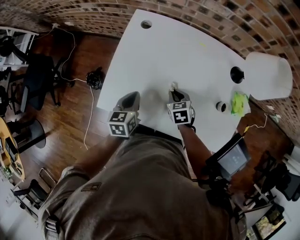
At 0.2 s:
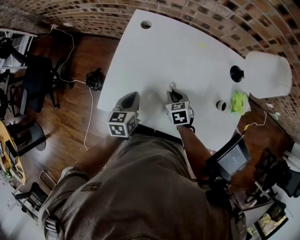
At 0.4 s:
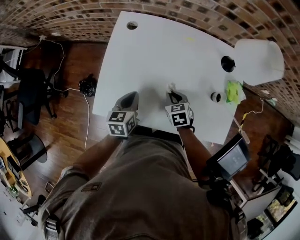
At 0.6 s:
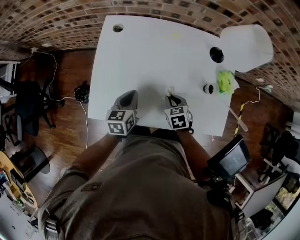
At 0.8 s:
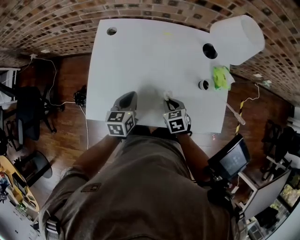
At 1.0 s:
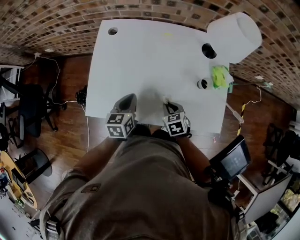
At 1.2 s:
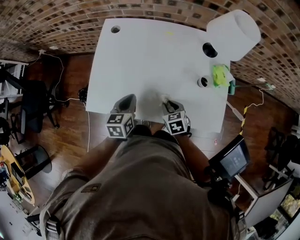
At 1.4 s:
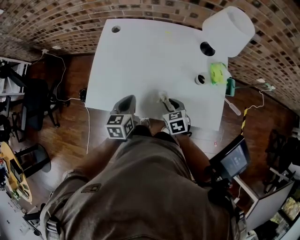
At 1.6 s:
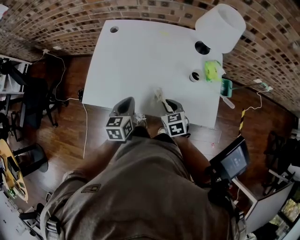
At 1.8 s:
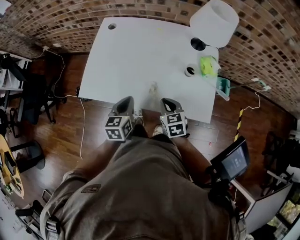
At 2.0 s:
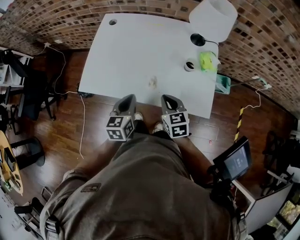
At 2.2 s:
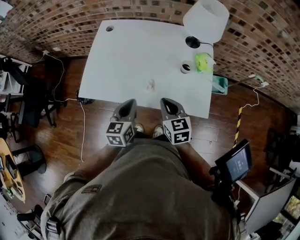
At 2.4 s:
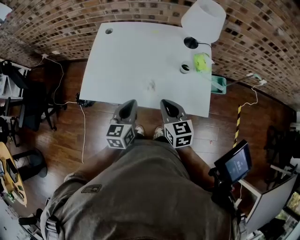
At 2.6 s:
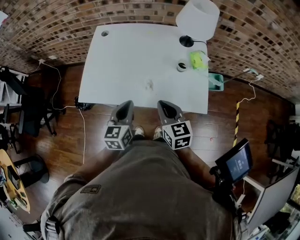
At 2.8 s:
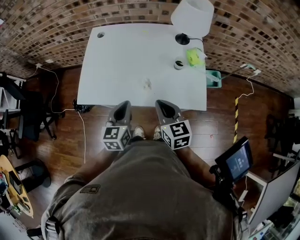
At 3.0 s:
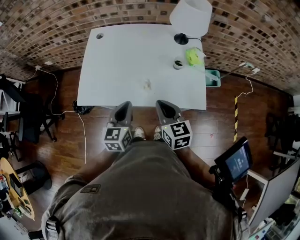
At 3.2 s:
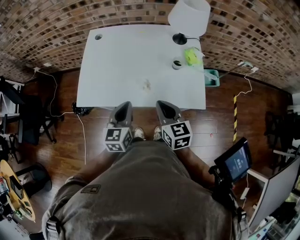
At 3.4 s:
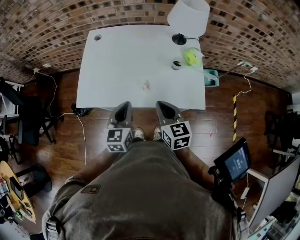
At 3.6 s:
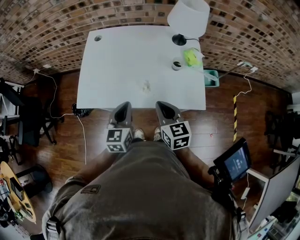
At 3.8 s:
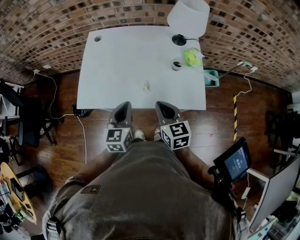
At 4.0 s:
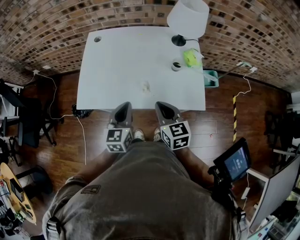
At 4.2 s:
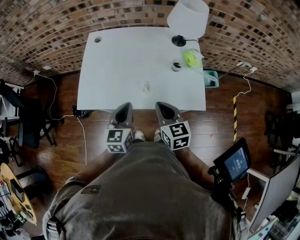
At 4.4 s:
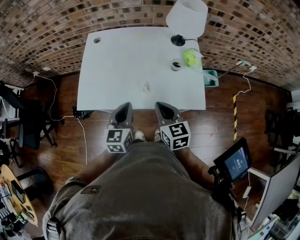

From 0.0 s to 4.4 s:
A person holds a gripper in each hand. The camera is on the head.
From 0.0 s to 1.4 s: The left gripper goes roughly 10 cm to the right and backward. Meanwhile the right gripper heads backward and to the right, covering some 15 cm, and opens.
From 1.4 s to 3.0 s: The left gripper shifts some 15 cm backward and upward. The right gripper moves upward and backward, about 20 cm, turns by about 30 degrees, and closes its fingers.
From 3.0 s to 4.4 s: The grippers stay close to where they were, moving slightly.

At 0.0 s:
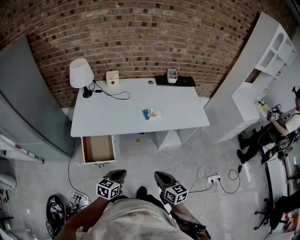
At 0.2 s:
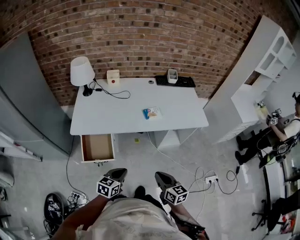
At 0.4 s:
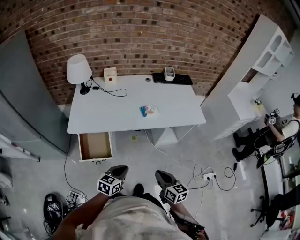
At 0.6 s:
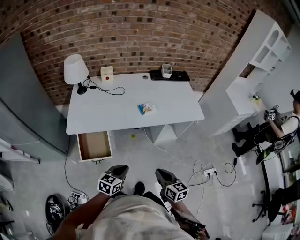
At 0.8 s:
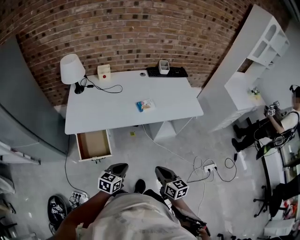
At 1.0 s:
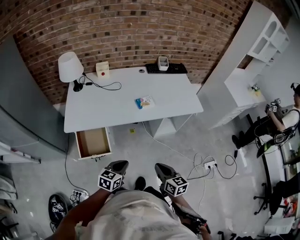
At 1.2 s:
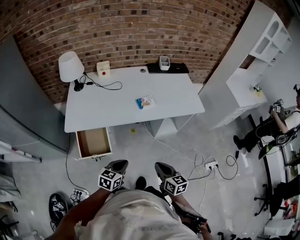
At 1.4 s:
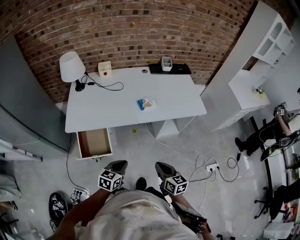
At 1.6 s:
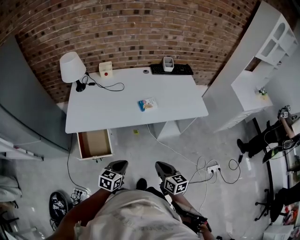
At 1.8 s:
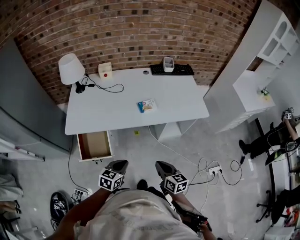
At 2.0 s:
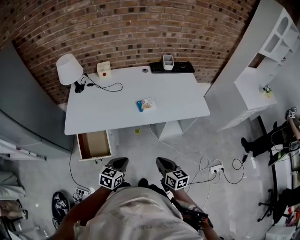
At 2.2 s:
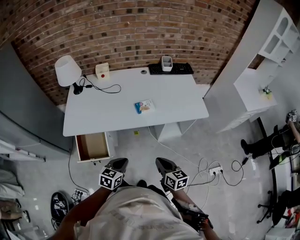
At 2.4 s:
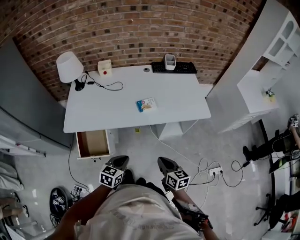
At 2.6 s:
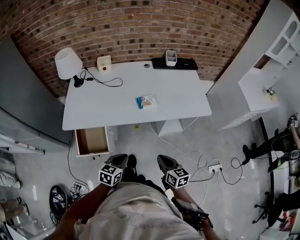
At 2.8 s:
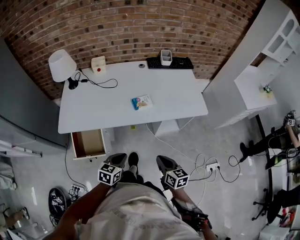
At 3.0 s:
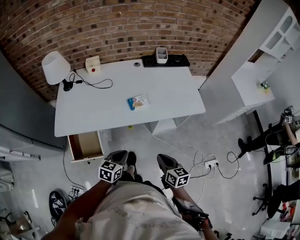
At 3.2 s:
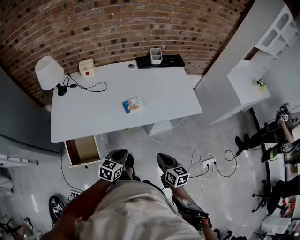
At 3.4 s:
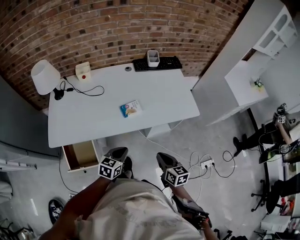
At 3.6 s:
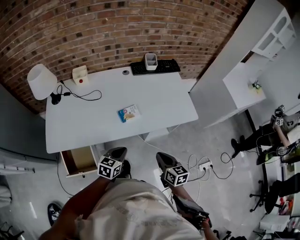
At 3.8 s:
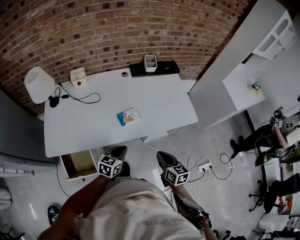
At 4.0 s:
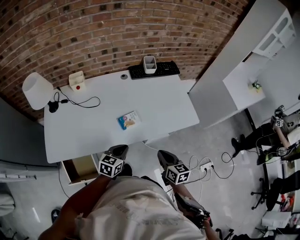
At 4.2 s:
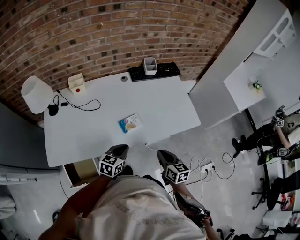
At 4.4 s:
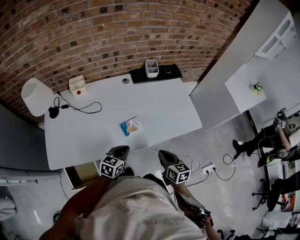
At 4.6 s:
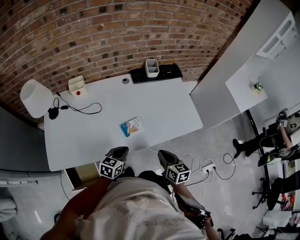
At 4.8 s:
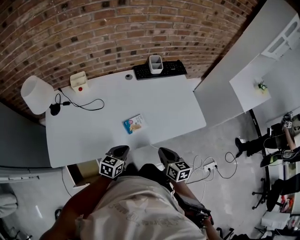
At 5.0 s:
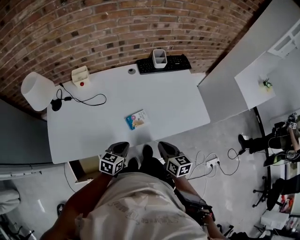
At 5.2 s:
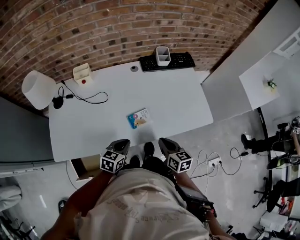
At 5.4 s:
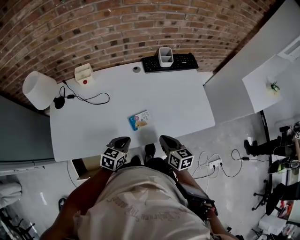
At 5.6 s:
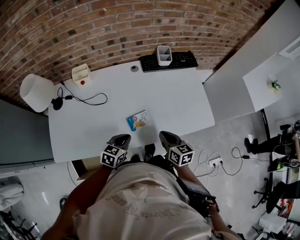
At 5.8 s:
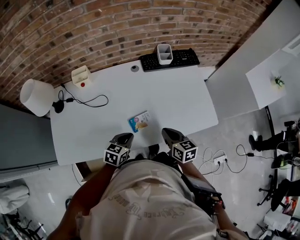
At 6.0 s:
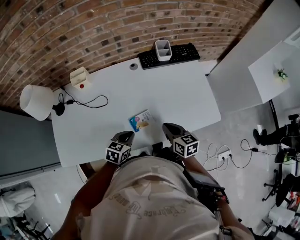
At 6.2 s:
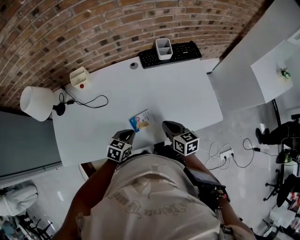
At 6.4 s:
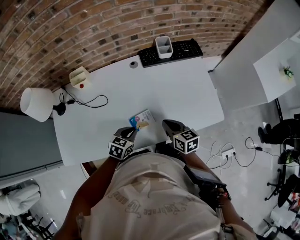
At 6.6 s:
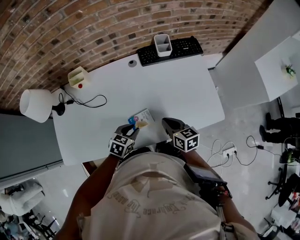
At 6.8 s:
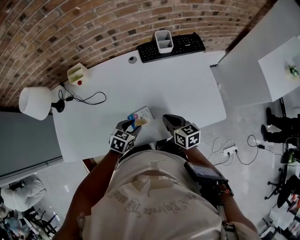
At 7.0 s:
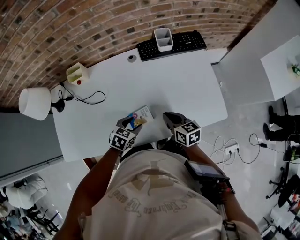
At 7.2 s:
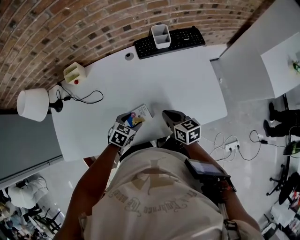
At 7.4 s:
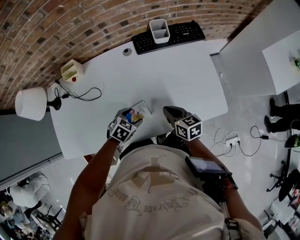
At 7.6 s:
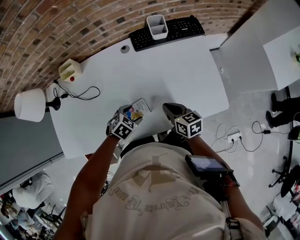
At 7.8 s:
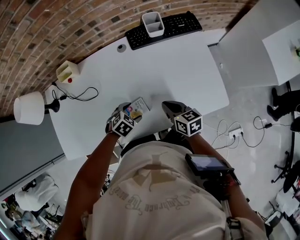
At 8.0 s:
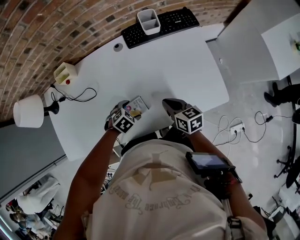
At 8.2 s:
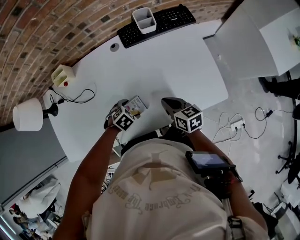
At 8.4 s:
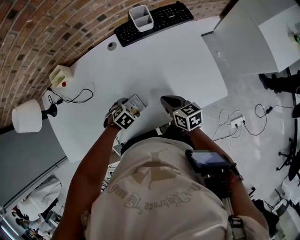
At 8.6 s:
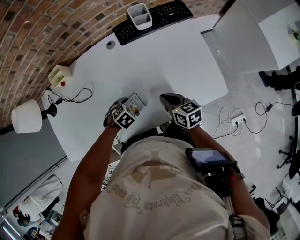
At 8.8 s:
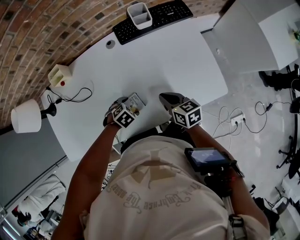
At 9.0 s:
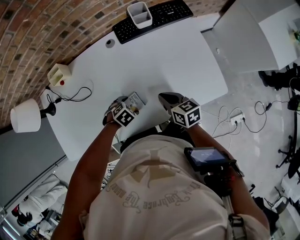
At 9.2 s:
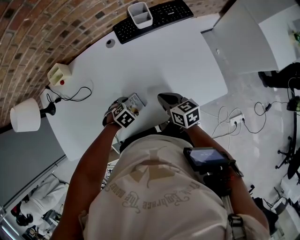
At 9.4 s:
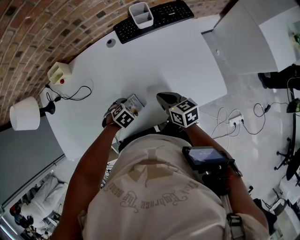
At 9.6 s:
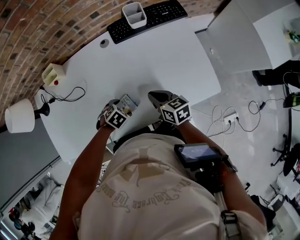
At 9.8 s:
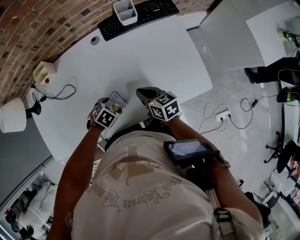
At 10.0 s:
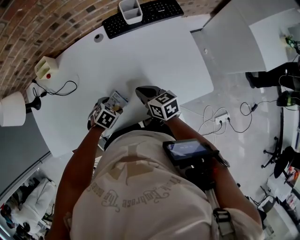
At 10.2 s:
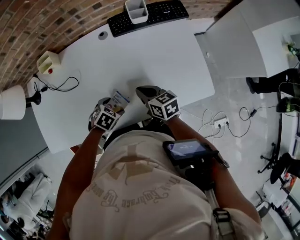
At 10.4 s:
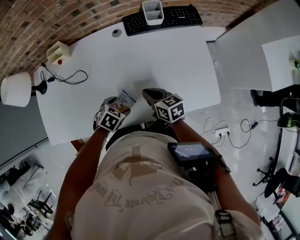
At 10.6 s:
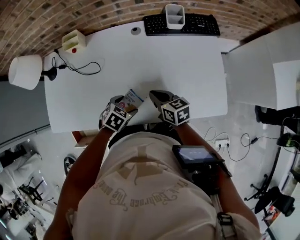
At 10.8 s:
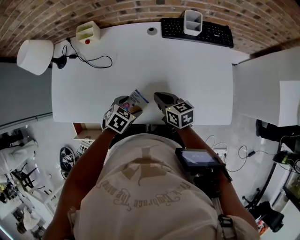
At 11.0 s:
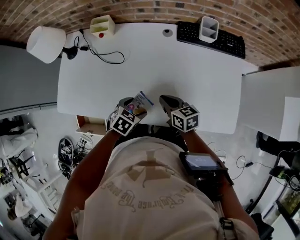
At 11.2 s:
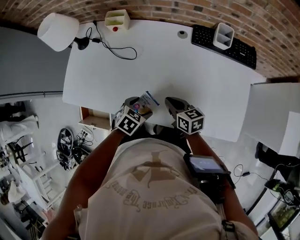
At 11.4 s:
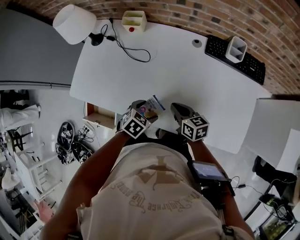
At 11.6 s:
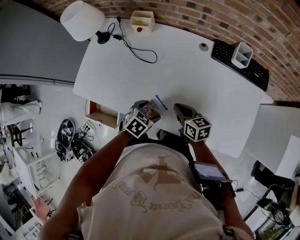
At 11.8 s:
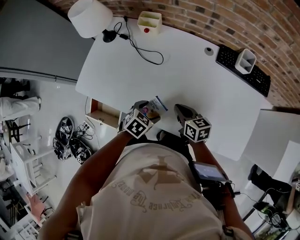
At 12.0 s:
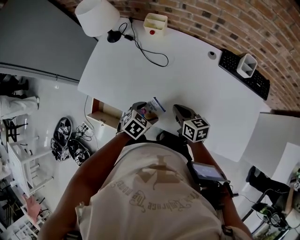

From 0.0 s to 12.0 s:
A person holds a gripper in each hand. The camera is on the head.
From 0.0 s to 1.6 s: There are only small adjustments of the grippers.
From 1.6 s to 3.0 s: The two grippers go some 10 cm forward and to the right.
From 3.0 s to 4.4 s: The grippers both shift forward by about 20 cm.
From 4.4 s to 6.0 s: The right gripper shifts some 15 cm forward; the left gripper is displaced forward by about 10 cm.
From 6.0 s to 7.6 s: The left gripper is displaced downward, forward and to the right by about 10 cm, changes its angle by roughly 30 degrees, and opens. Meanwhile the right gripper shifts some 10 cm forward and downward.
From 7.6 s to 9.0 s: The grippers make only small movements.
From 9.0 s to 10.4 s: The left gripper changes place by about 5 cm, and changes its angle by roughly 20 degrees.
From 10.4 s to 12.0 s: The left gripper changes place by approximately 15 cm, and rotates roughly 30 degrees. The right gripper shifts by approximately 20 cm, and swivels roughly 20 degrees.

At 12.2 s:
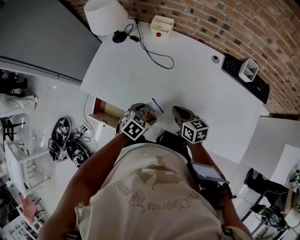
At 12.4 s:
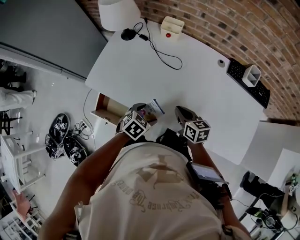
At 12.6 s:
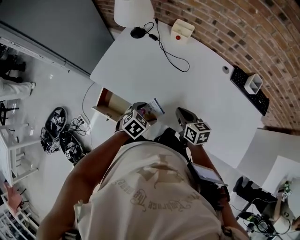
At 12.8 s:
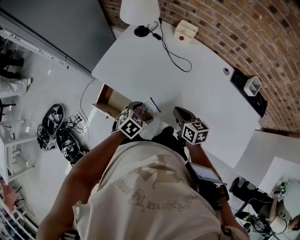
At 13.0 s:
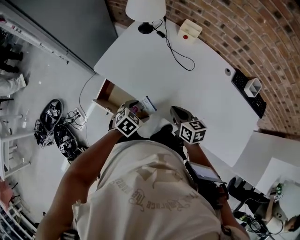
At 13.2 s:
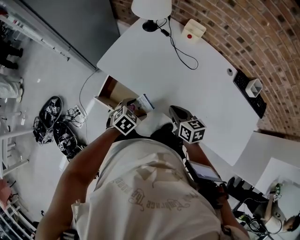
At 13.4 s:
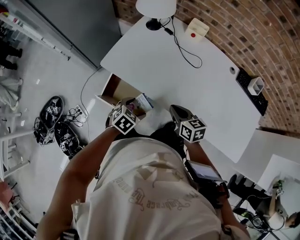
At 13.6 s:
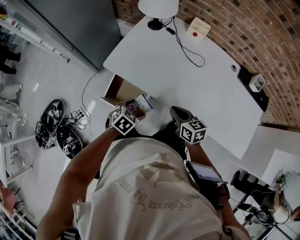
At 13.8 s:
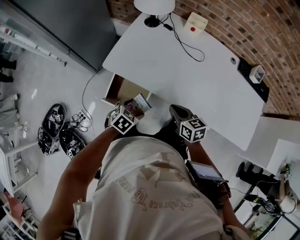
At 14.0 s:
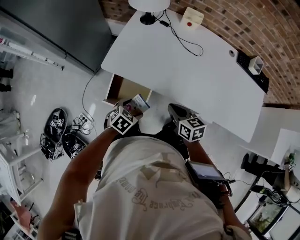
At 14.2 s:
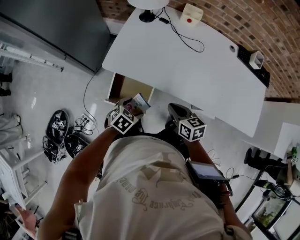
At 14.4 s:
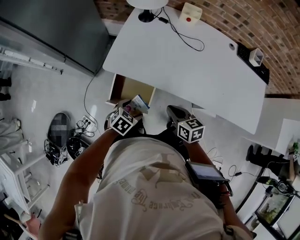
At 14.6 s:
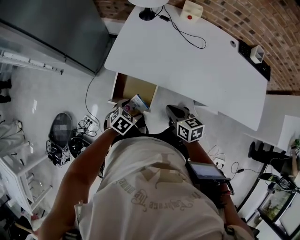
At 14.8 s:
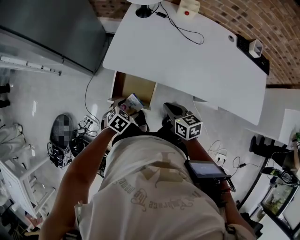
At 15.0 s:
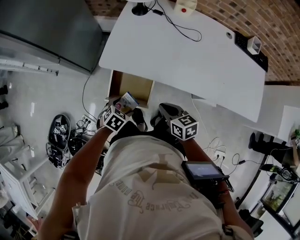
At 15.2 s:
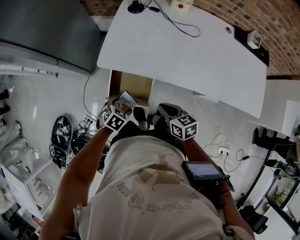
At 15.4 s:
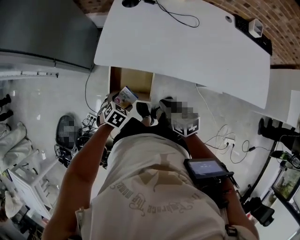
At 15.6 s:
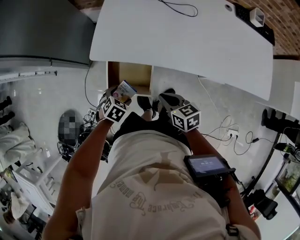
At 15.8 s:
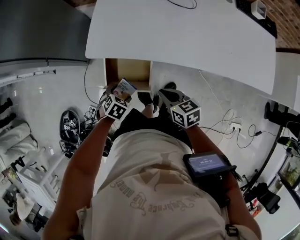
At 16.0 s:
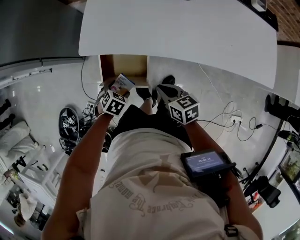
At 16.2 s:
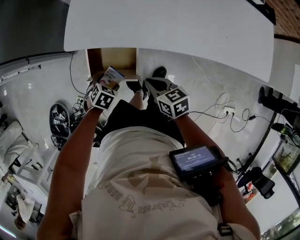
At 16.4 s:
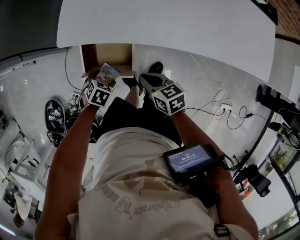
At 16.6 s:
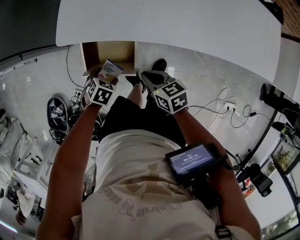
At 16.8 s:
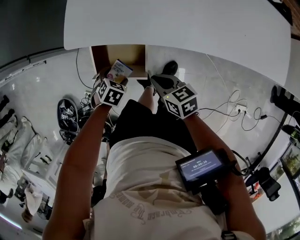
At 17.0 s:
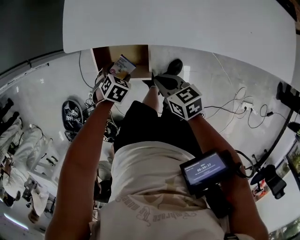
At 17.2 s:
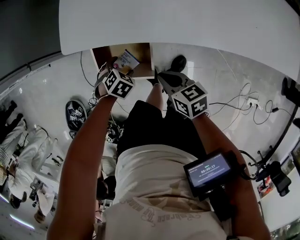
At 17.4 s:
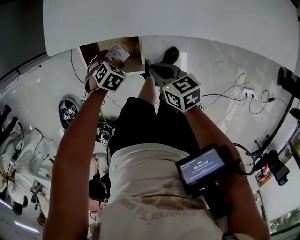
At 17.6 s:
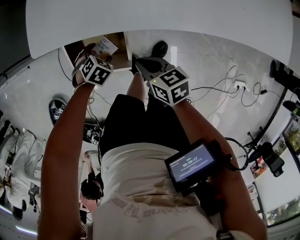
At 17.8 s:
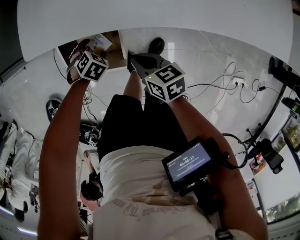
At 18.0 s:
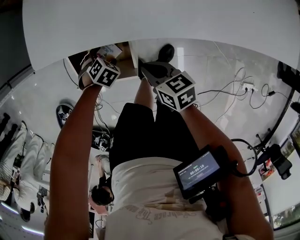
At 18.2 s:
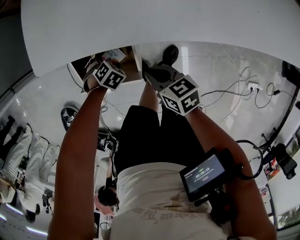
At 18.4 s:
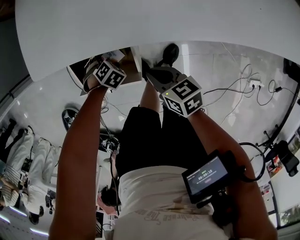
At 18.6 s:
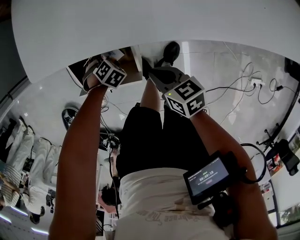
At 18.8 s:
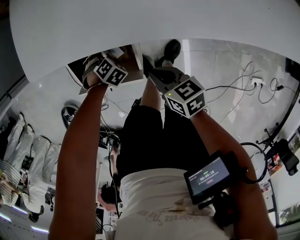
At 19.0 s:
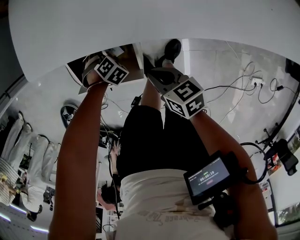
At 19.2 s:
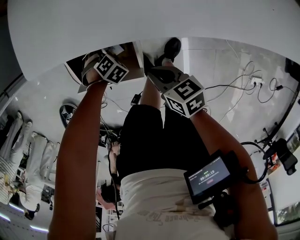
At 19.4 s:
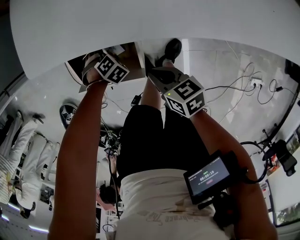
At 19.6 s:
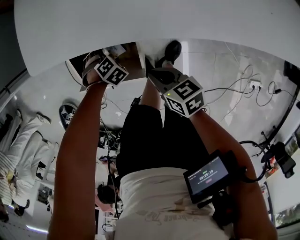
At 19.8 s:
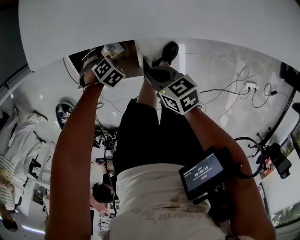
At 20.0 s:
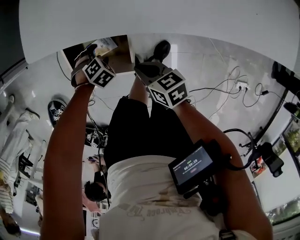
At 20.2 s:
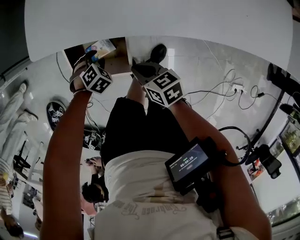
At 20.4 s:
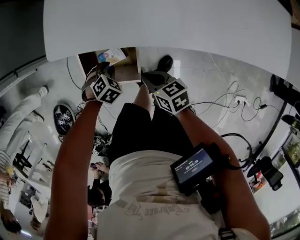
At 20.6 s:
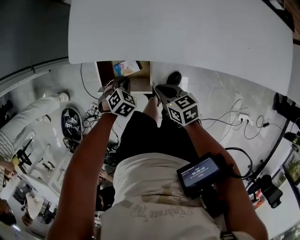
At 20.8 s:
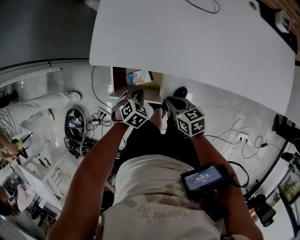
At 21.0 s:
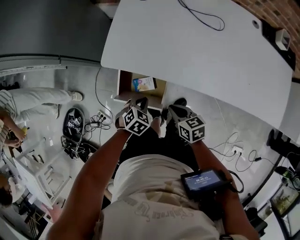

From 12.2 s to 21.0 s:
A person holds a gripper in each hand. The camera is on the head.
From 12.2 s to 13.6 s: The right gripper shifts about 20 cm to the left and backward. The left gripper heads to the left, covering about 25 cm.
From 13.6 s to 15.2 s: The right gripper shifts approximately 15 cm to the left and backward; the left gripper is displaced to the left and downward by approximately 15 cm.
From 15.2 s to 16.6 s: The grippers both shift downward by roughly 10 cm.
From 16.6 s to 18.0 s: The grippers both shift downward by about 10 cm. The left gripper rotates some 20 degrees.
From 19.6 s to 21.0 s: The right gripper is displaced upward by some 10 cm; the left gripper shifts about 20 cm upward, changes its angle by approximately 40 degrees, and closes up.
